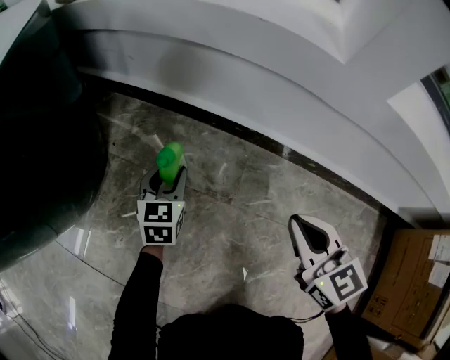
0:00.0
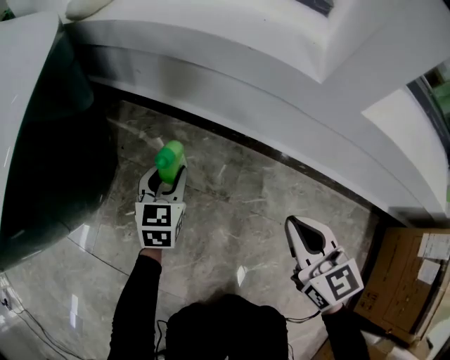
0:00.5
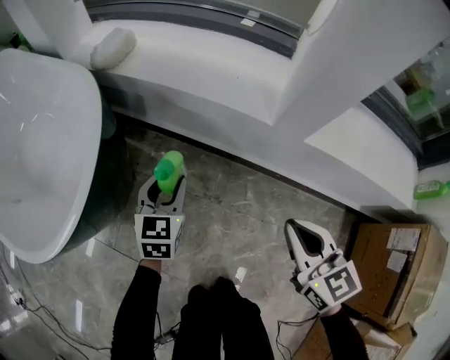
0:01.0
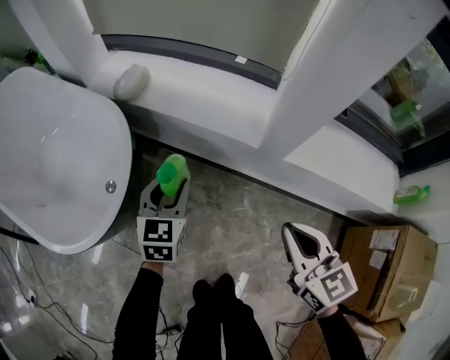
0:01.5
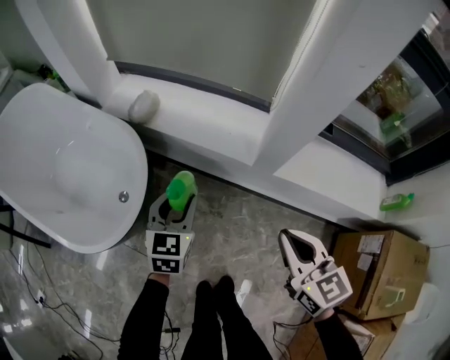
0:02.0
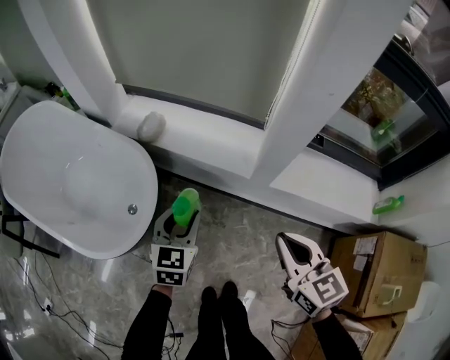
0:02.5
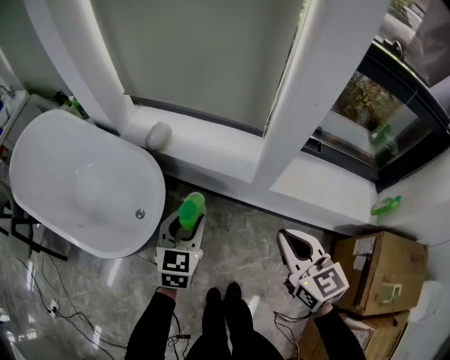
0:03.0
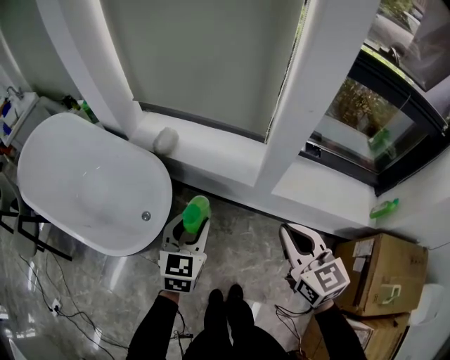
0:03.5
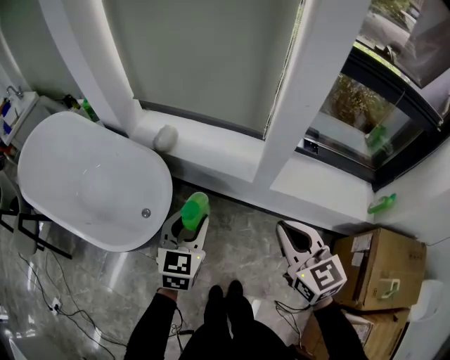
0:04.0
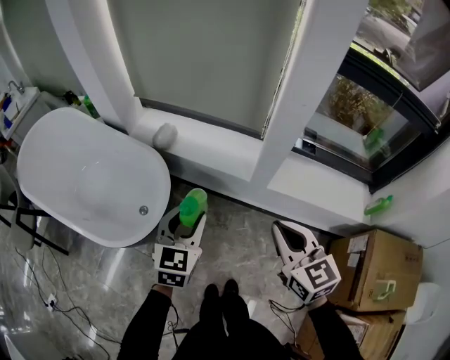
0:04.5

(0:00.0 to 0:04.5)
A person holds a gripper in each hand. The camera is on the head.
0:00.0 - 0:02.0: The grippers both shift upward by some 50 cm.
0:02.0 - 0:04.5: The left gripper travels upward and backward by some 20 cm. The right gripper is displaced upward by approximately 15 cm.

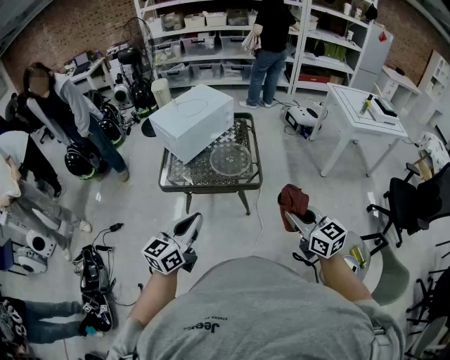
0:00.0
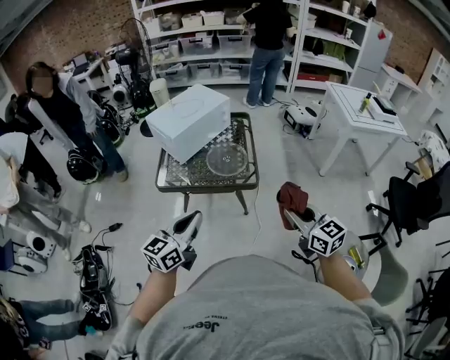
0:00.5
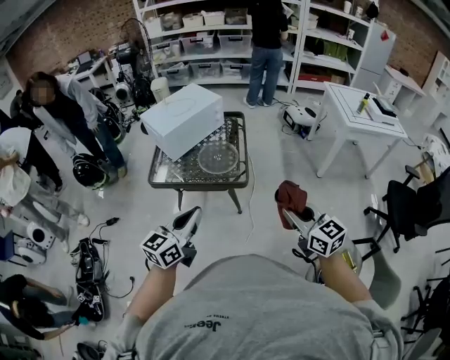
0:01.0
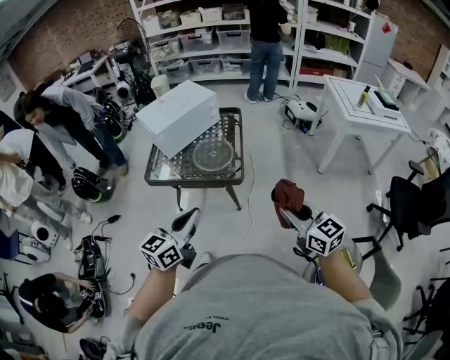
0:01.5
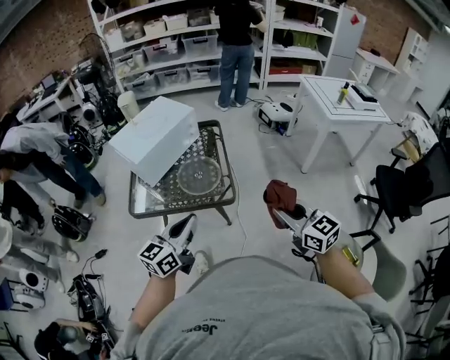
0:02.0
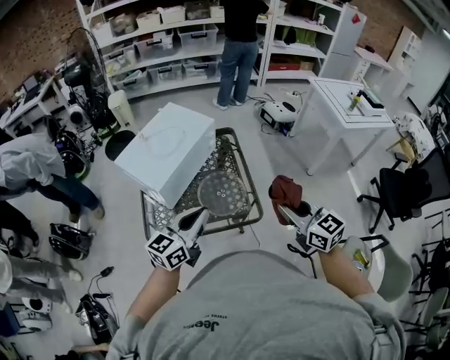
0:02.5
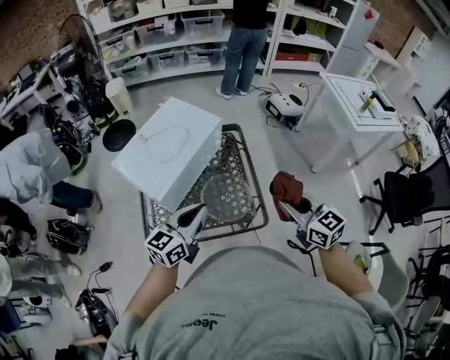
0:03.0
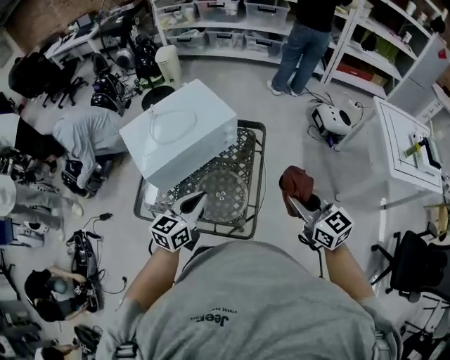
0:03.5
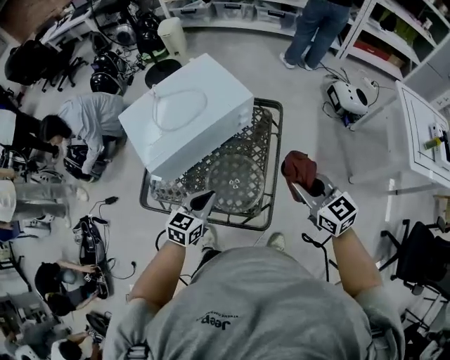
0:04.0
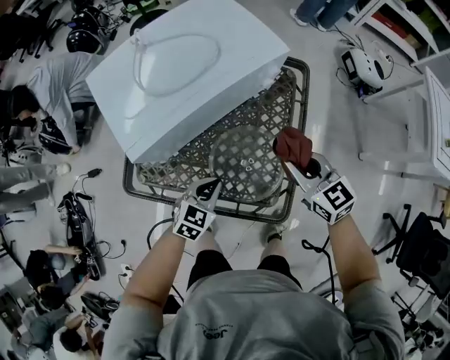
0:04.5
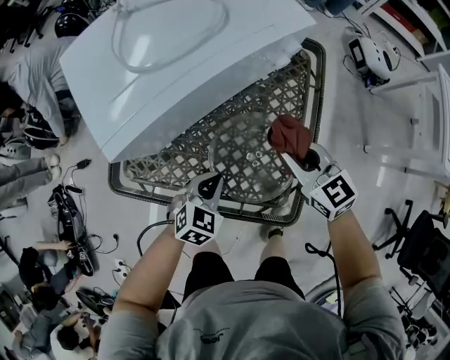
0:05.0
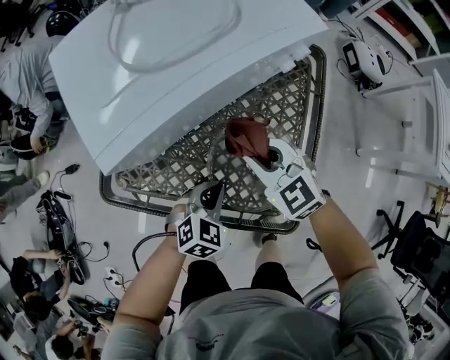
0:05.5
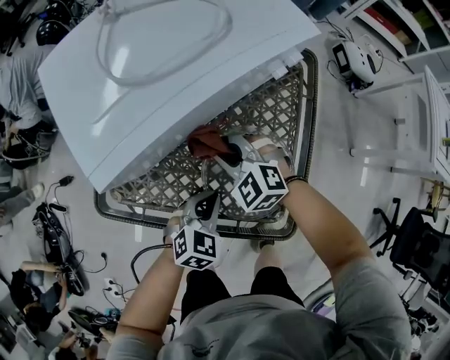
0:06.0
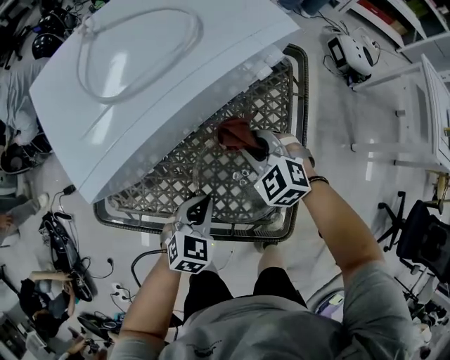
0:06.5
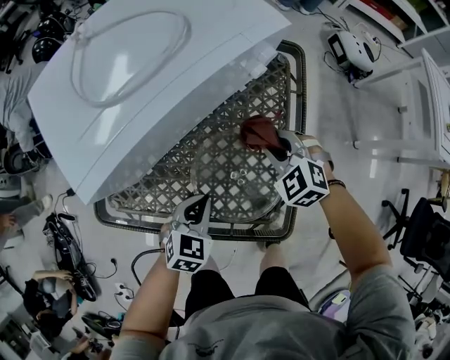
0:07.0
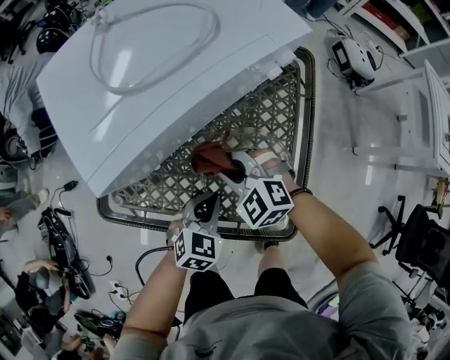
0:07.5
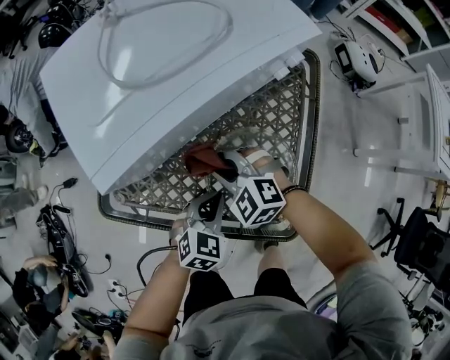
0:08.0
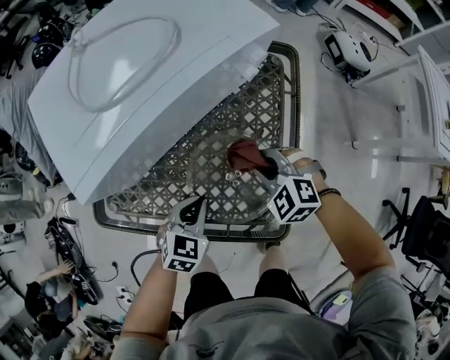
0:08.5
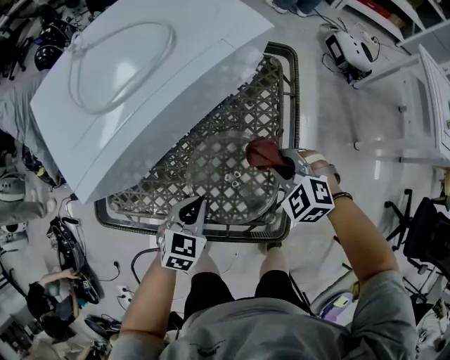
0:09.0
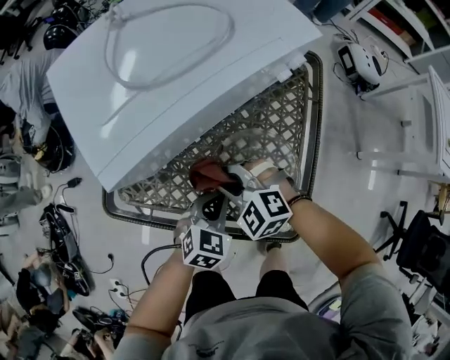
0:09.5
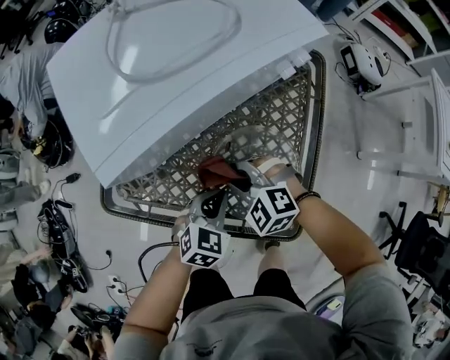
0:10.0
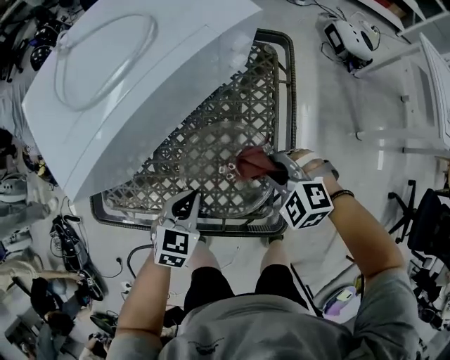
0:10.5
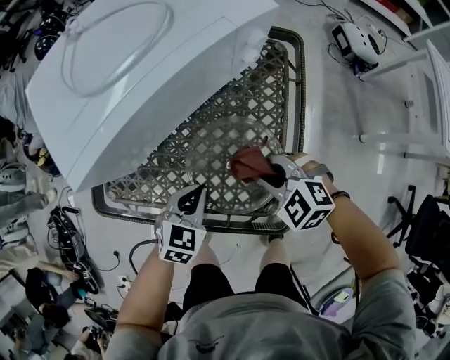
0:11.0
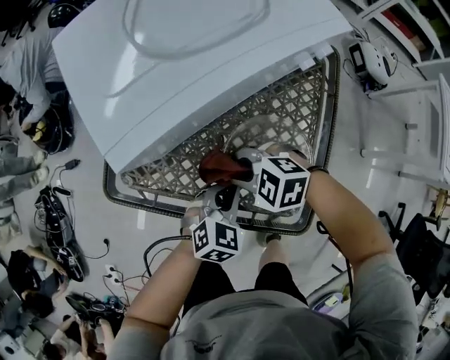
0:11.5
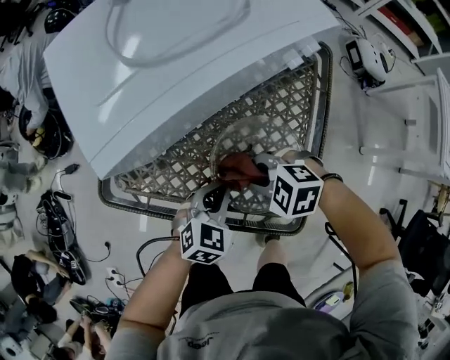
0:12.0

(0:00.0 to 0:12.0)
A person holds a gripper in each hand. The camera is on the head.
0:00.0 - 0:02.0: Both grippers move forward and to the right, approximately 15 cm.
0:02.0 - 0:04.0: The right gripper goes approximately 40 cm forward, while the left gripper shifts roughly 35 cm forward and downward, and turns by some 30 degrees.
0:04.0 - 0:06.0: The left gripper heads downward, covering about 20 cm, and swivels roughly 20 degrees; the right gripper goes about 40 cm downward and to the left, and twists roughly 40 degrees counterclockwise, seen from behind.
0:06.0 - 0:08.0: The right gripper reaches approximately 15 cm to the right, then returns.
0:08.0 - 0:10.0: The right gripper moves approximately 20 cm to the right and comes back.
0:10.0 - 0:12.0: The right gripper swivels about 20 degrees.

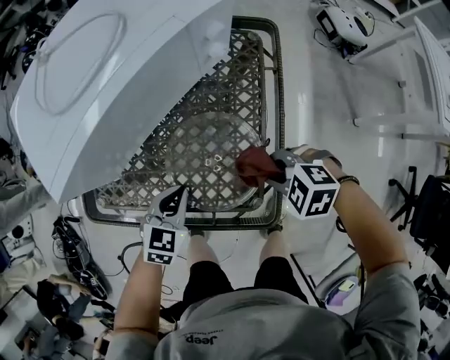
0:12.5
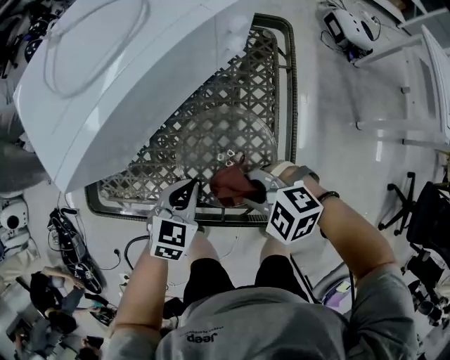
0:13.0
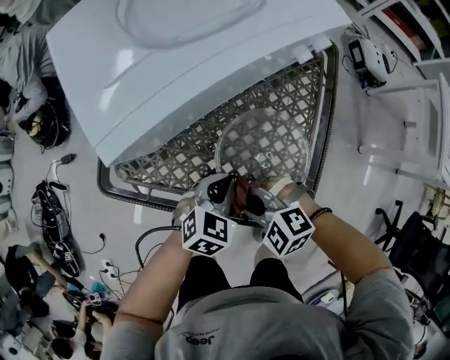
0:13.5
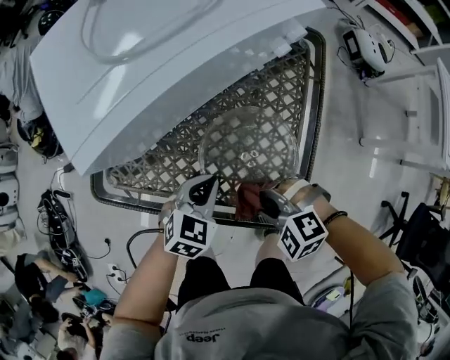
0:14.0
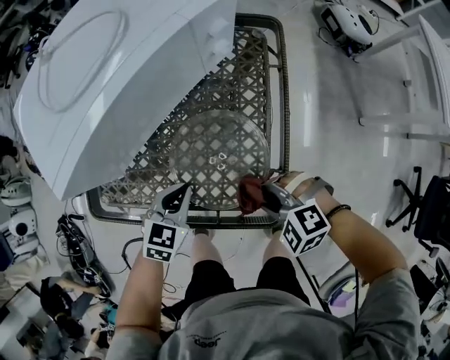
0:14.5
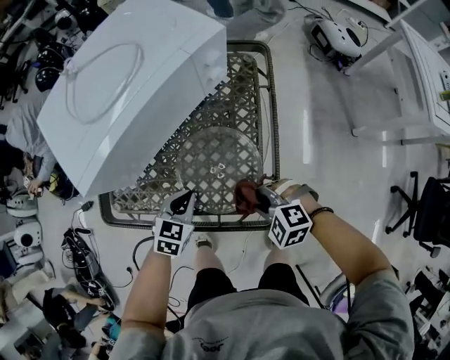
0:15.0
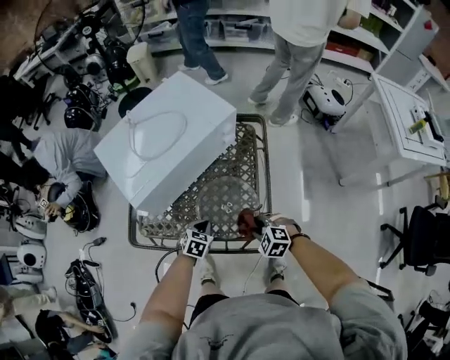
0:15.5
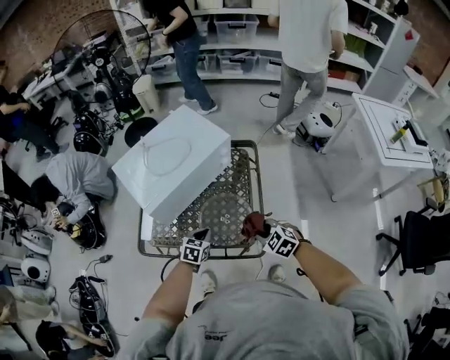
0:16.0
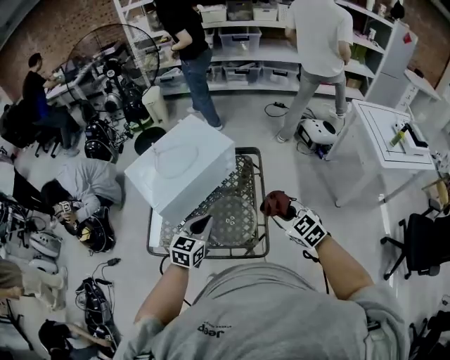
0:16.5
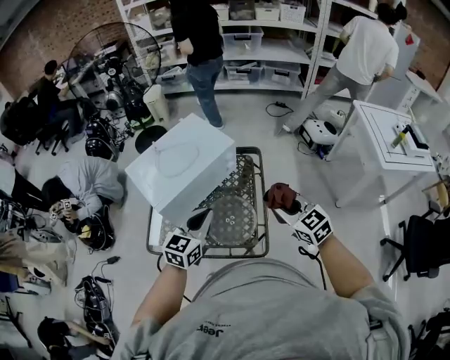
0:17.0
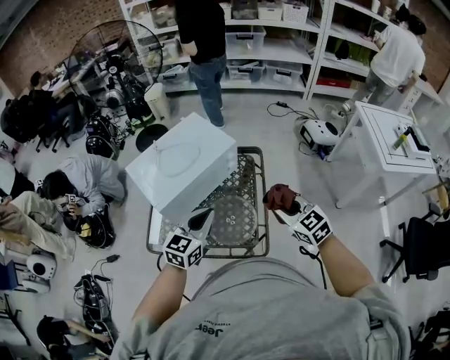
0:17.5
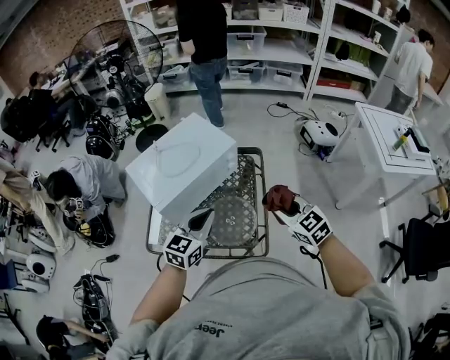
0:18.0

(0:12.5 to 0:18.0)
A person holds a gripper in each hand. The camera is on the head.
0:14.5 - 0:16.0: The left gripper heads upward, covering approximately 10 cm; the right gripper is displaced upward by roughly 15 cm, and changes its angle by approximately 30 degrees.
0:16.0 - 0:18.0: The right gripper is displaced upward by approximately 20 cm, and turns by roughly 20 degrees. Meanwhile the left gripper goes roughly 25 cm upward, and tips its fingers upward by some 30 degrees.

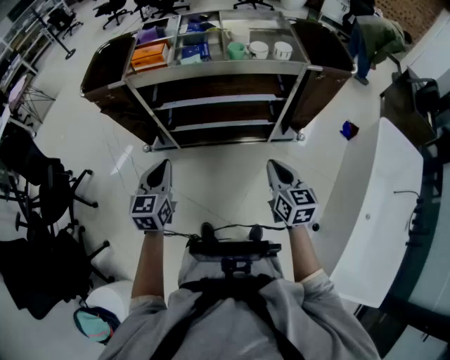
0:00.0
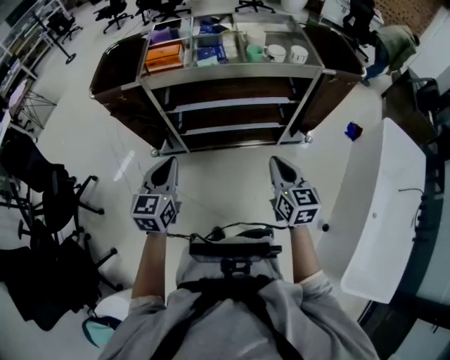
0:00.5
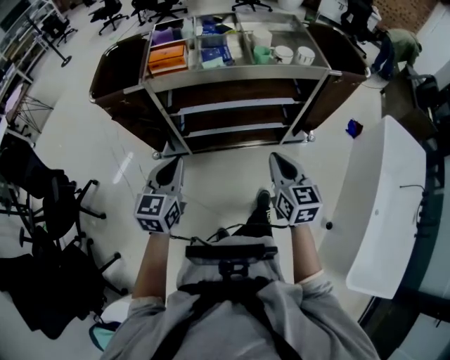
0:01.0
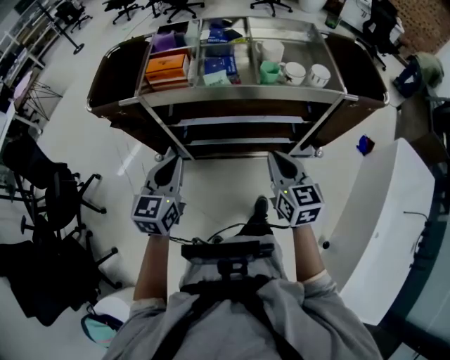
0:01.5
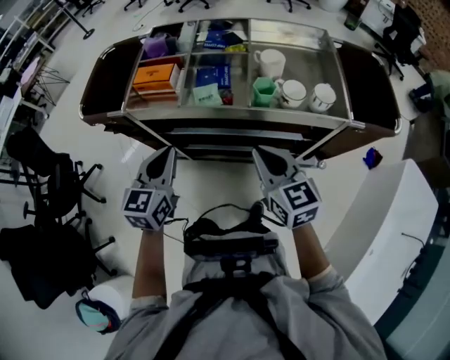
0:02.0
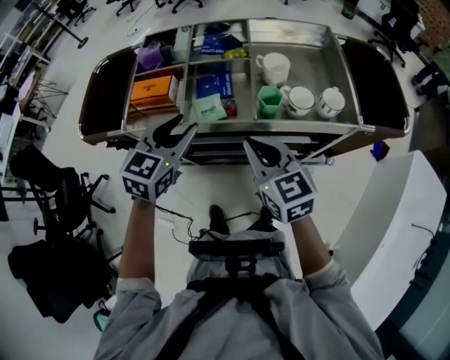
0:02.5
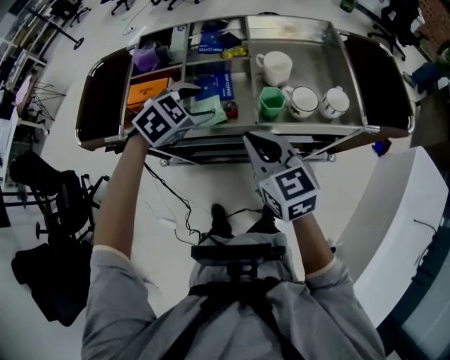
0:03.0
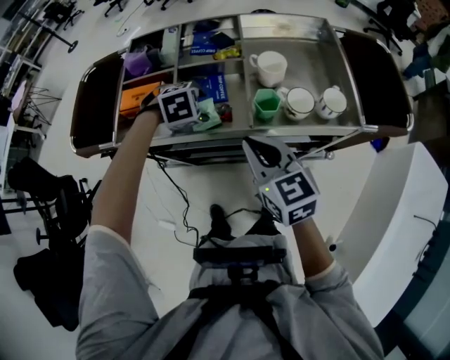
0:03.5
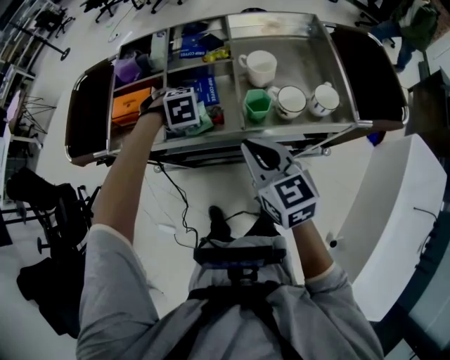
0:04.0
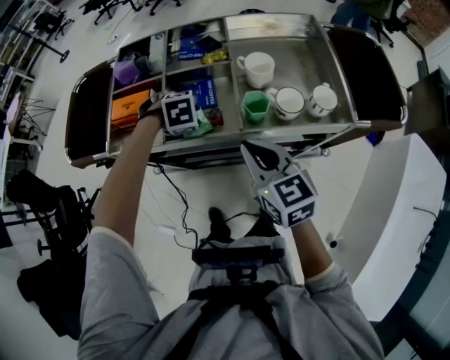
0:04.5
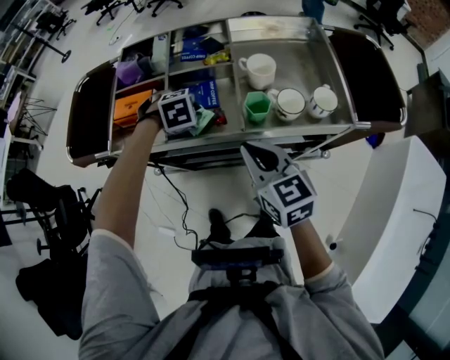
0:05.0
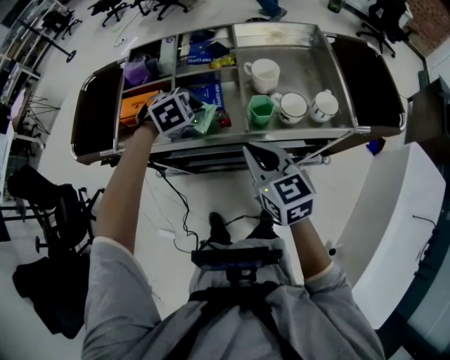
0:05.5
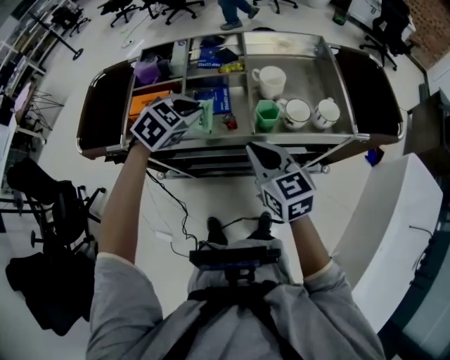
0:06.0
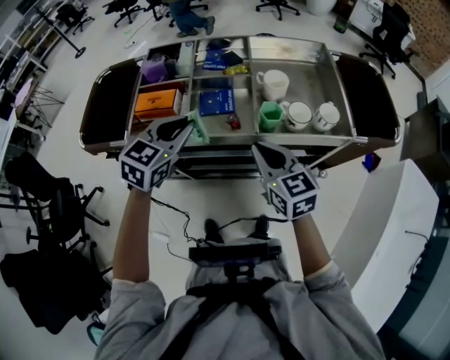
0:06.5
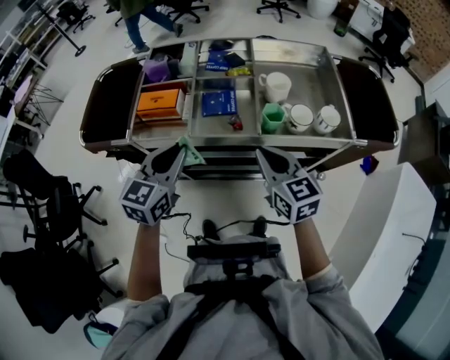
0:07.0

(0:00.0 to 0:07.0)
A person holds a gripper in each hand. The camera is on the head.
0:00.0 - 0:02.0: Both grippers travel together forward, some 25 cm. The right gripper rotates about 20 degrees.
0:02.0 - 0:03.5: The left gripper travels forward and downward by some 25 cm, points its fingers about 60 degrees further downward, and opens its fingers. The right gripper travels forward by approximately 10 cm.
0:03.5 - 0:05.0: The left gripper closes up.
0:05.0 - 0:07.0: The left gripper shifts by roughly 20 cm, and tips its fingers upward by roughly 60 degrees.
